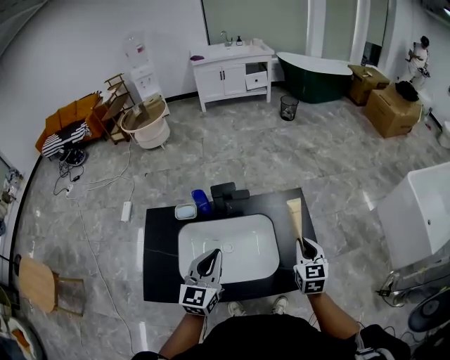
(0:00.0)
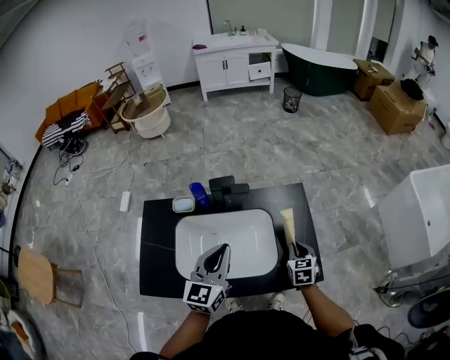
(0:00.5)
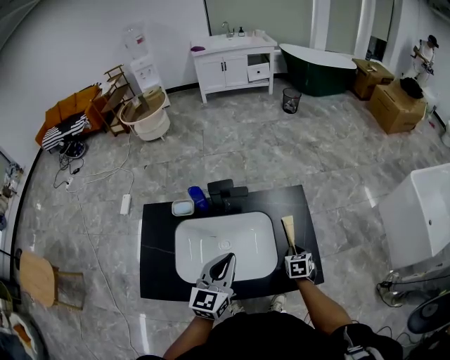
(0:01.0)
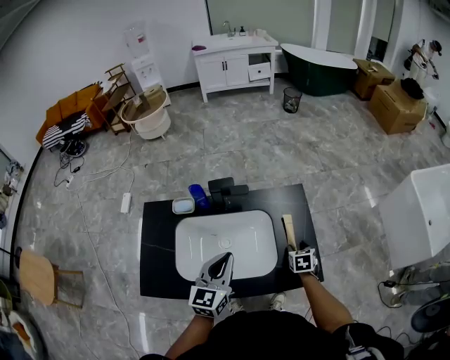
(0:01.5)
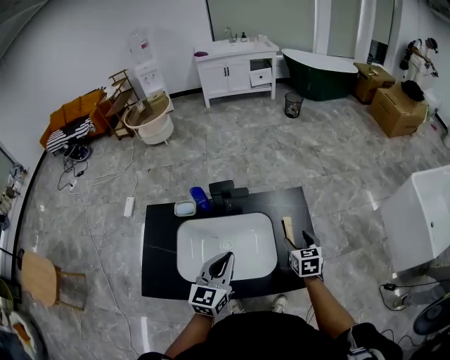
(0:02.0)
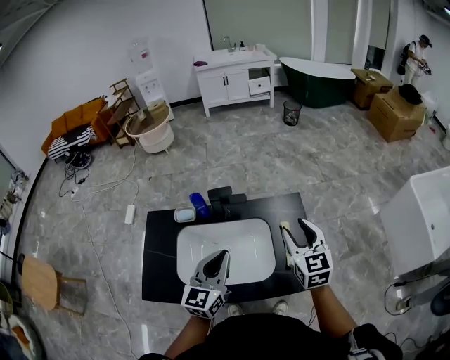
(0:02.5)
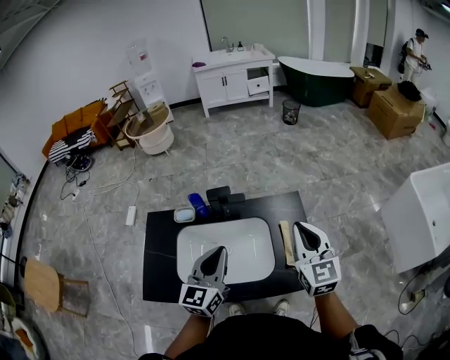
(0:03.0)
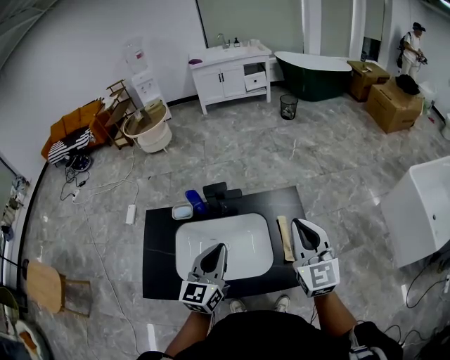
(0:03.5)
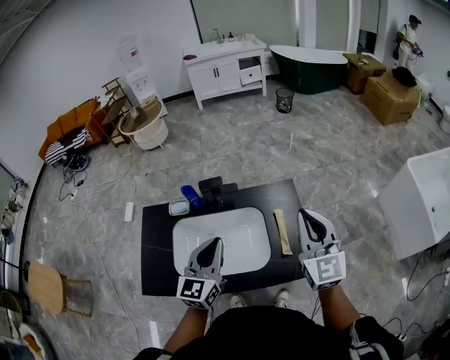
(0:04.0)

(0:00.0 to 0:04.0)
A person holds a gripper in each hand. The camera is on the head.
0:00.0 - 0:02.0: The left gripper moves to the right, some 5 cm. The right gripper is displaced downward by some 5 cm, and opens its fingers.
0:02.0 - 0:04.0: The right gripper travels upward by roughly 25 cm, tips its fingers upward by roughly 40 degrees, and closes up; the left gripper is displaced upward by roughly 5 cm.

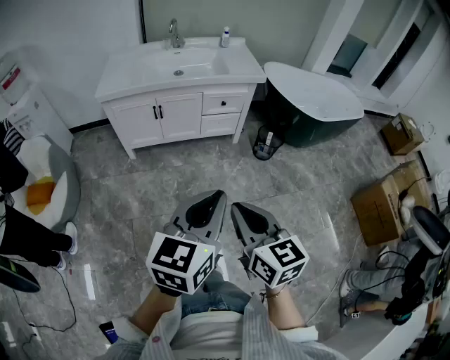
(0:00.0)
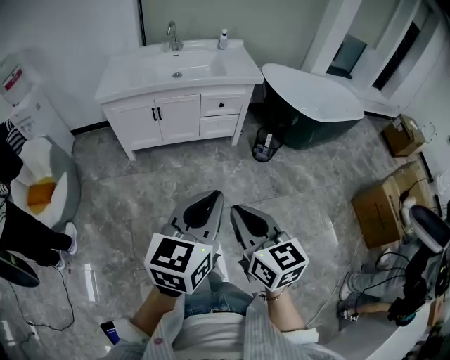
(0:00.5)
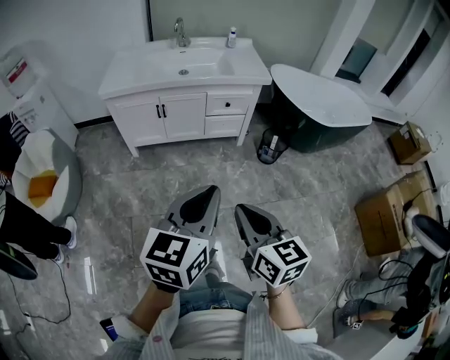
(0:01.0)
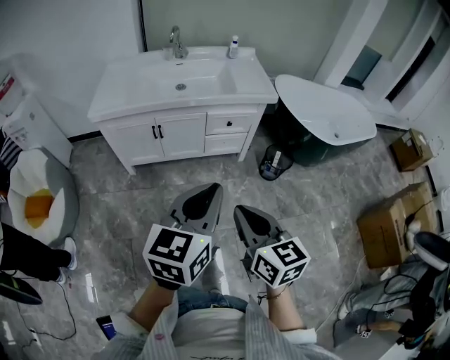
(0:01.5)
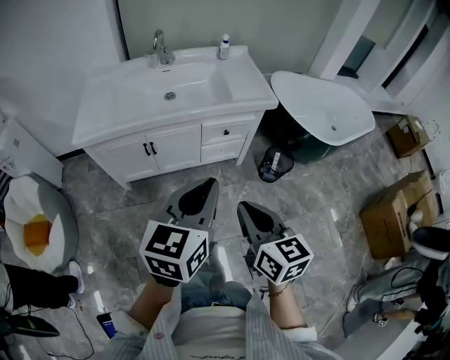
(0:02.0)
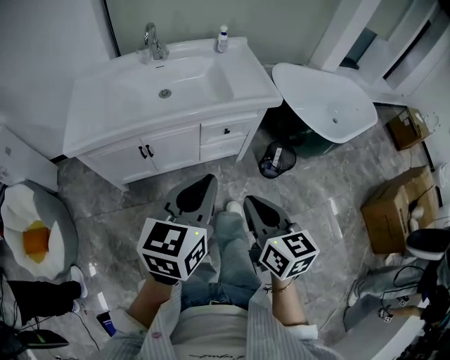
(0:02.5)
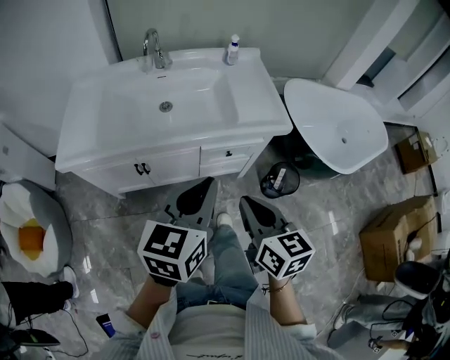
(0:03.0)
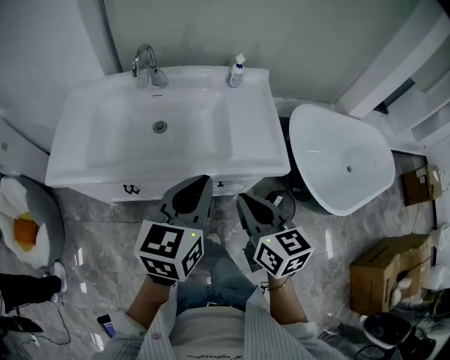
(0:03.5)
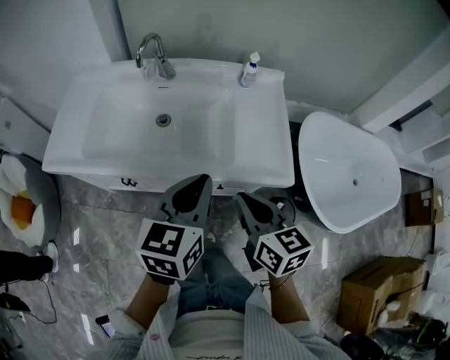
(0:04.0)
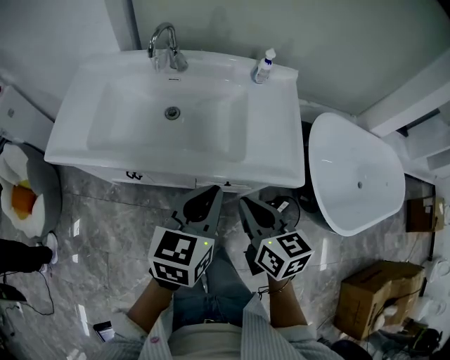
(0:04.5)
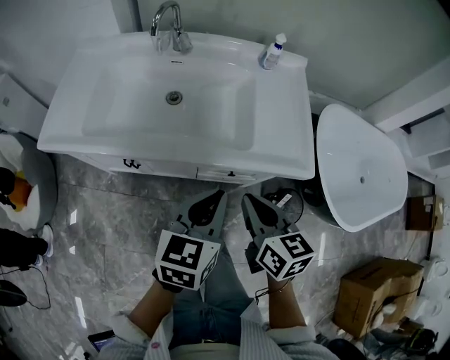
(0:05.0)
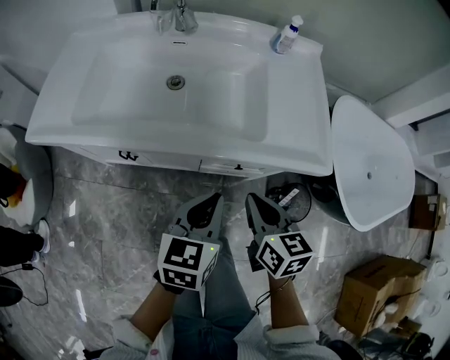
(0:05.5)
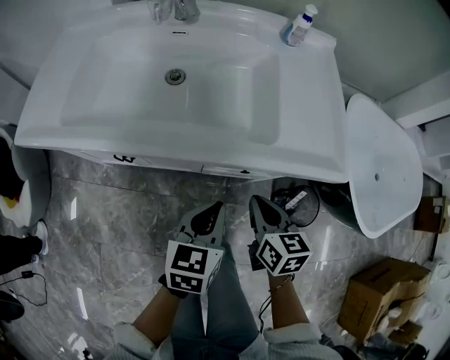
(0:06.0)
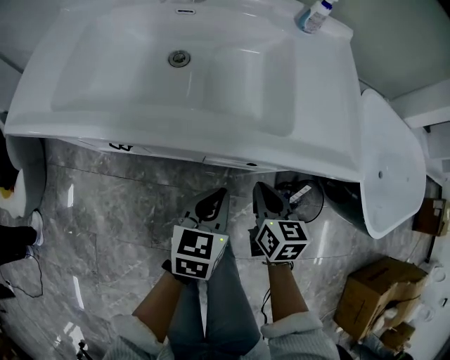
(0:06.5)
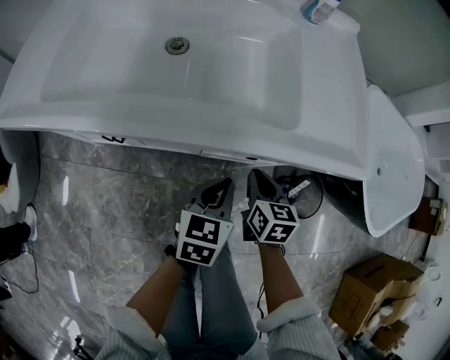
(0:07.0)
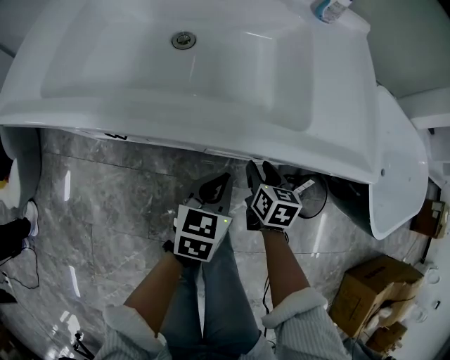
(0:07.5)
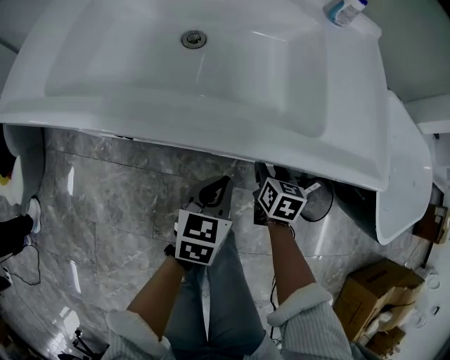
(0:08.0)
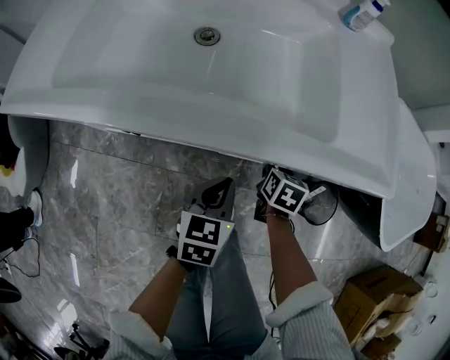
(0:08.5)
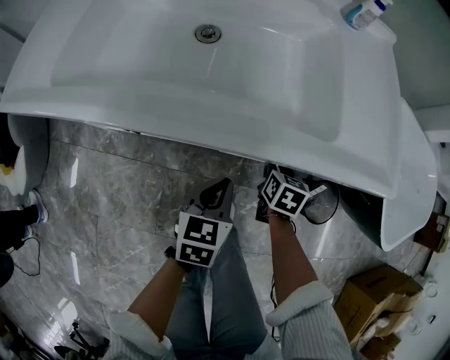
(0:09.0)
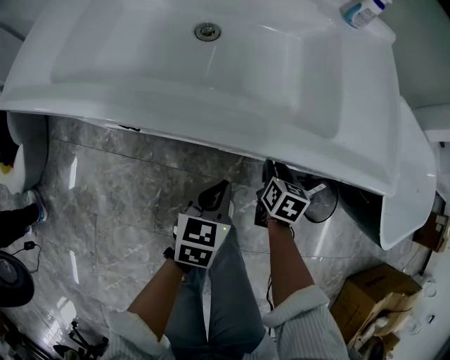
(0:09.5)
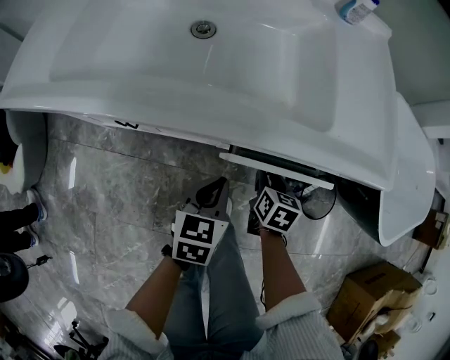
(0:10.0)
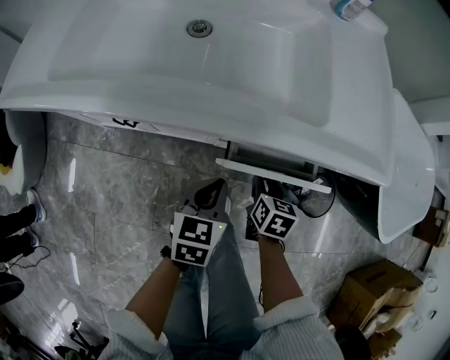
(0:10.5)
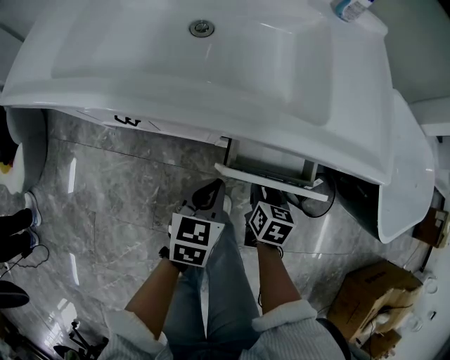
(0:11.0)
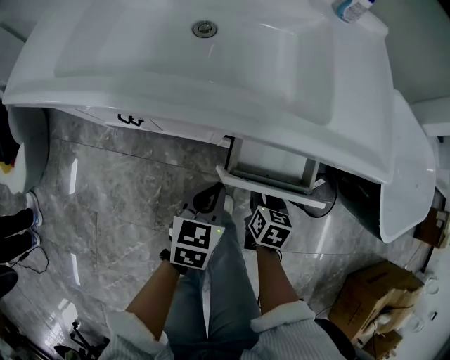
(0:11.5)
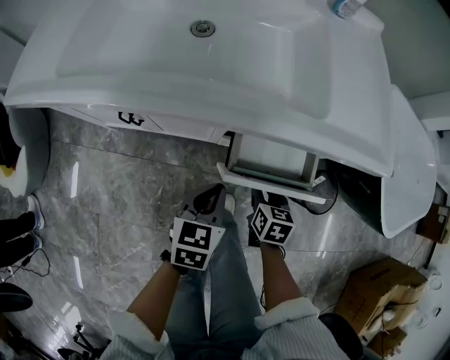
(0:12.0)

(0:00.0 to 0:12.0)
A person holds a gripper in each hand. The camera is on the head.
0:00.0 - 0:02.0: The grippers both shift forward by roughly 30 cm.
0:02.0 - 0:04.0: Both grippers travel together forward, about 35 cm.
0:04.0 - 0:06.0: Both grippers travel together downward, some 25 cm.
0:06.0 - 0:08.0: The right gripper shifts approximately 20 cm downward and forward, and opens up. The left gripper heads downward, covering approximately 10 cm.
0:08.0 - 0:10.0: The right gripper moves roughly 5 cm.
0:10.0 - 0:12.0: The right gripper is displaced backward by about 5 cm.

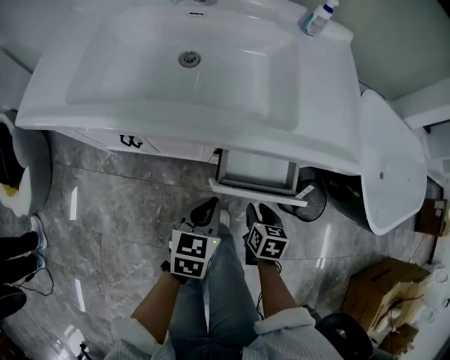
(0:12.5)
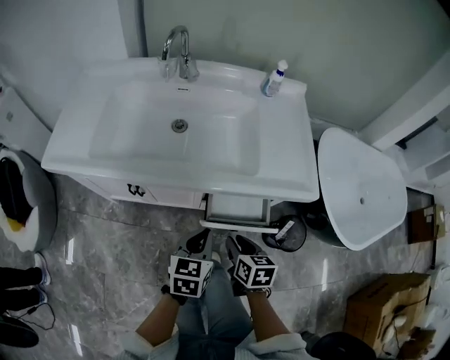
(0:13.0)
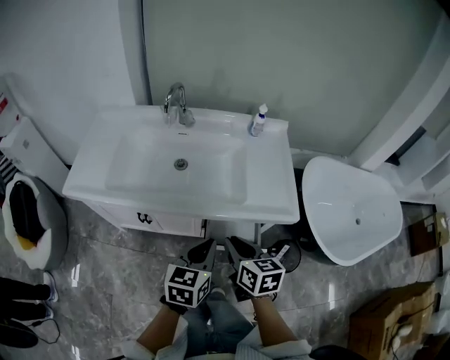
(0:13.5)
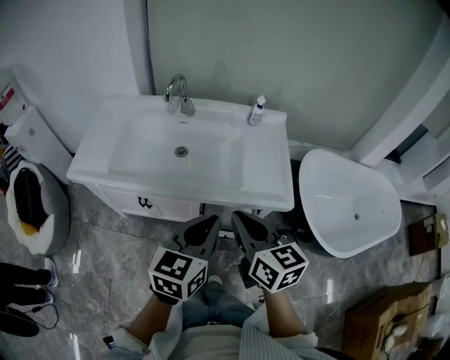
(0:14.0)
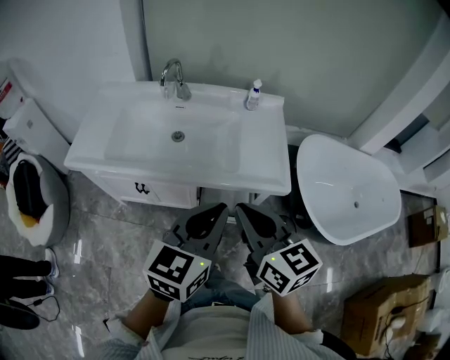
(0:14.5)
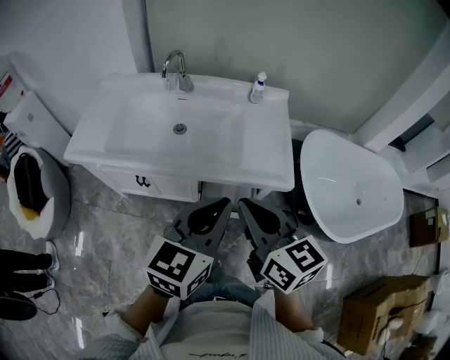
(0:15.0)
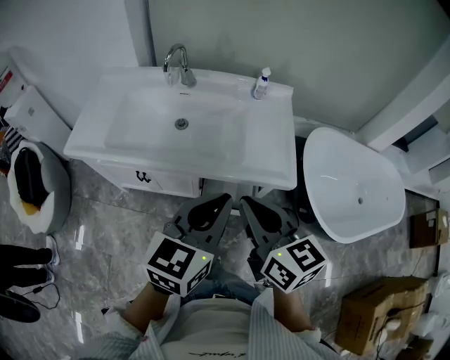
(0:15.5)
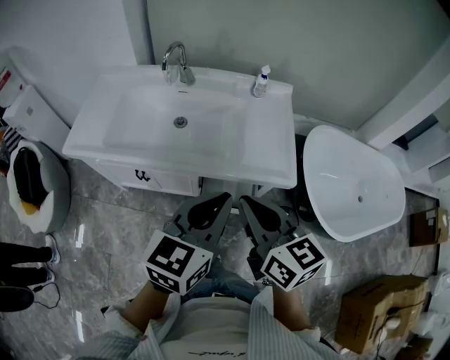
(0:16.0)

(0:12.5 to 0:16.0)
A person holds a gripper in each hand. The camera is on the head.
0:12.5 - 0:14.5: The two grippers go roughly 40 cm upward. The right gripper tilts its fingers approximately 40 degrees upward, and closes, while the left gripper swivels roughly 30 degrees.
0:14.5 - 0:16.0: The grippers make only small movements.

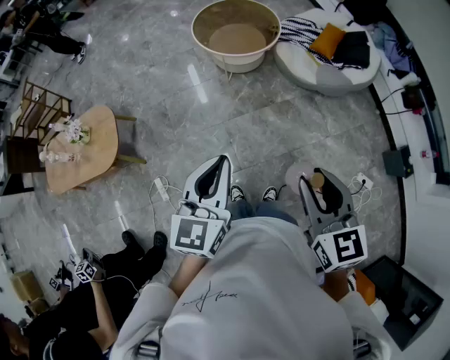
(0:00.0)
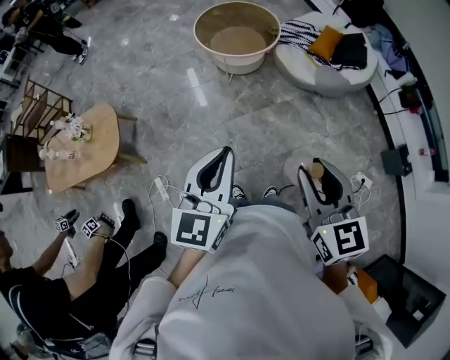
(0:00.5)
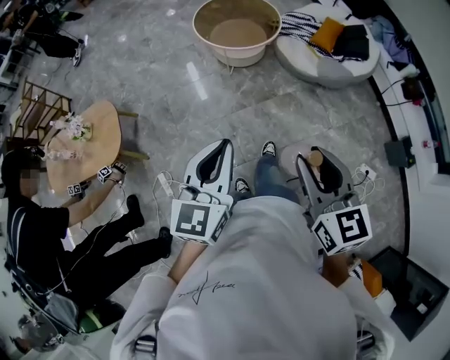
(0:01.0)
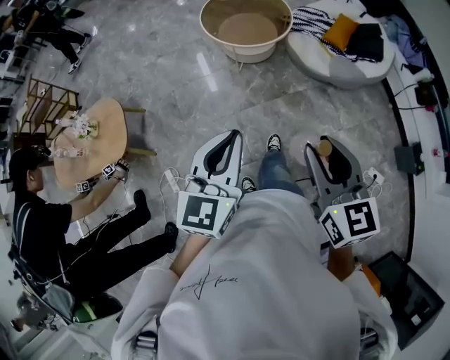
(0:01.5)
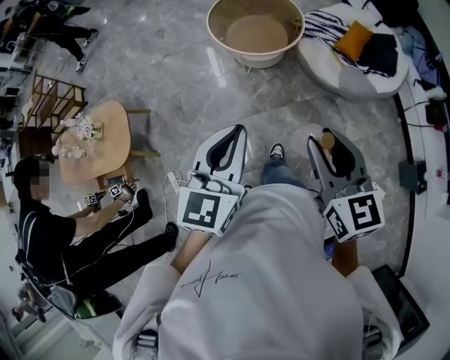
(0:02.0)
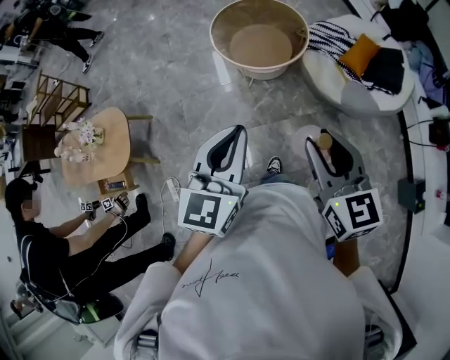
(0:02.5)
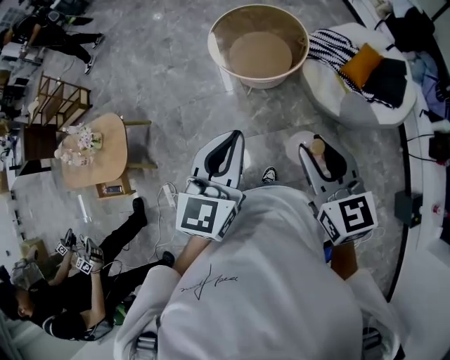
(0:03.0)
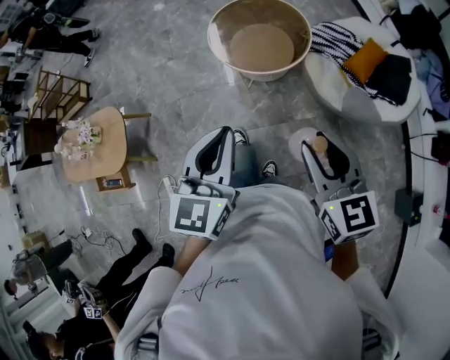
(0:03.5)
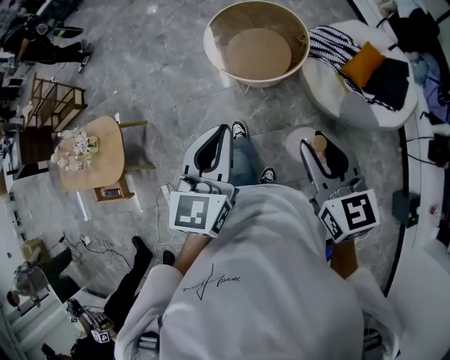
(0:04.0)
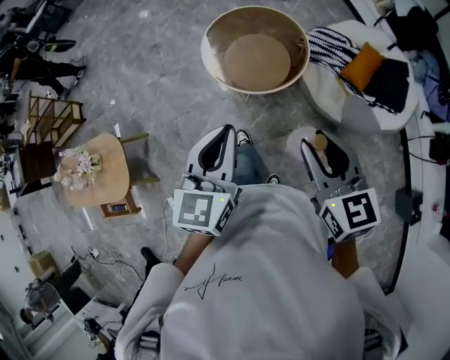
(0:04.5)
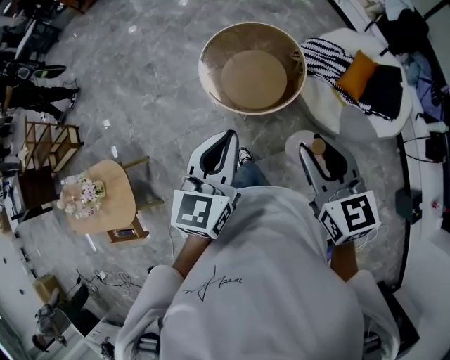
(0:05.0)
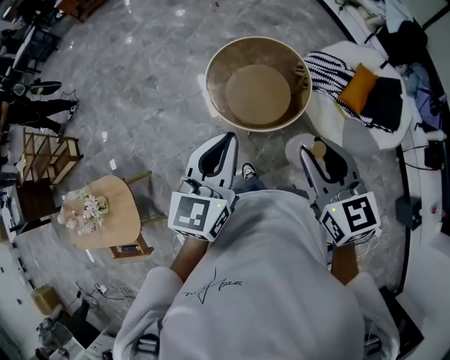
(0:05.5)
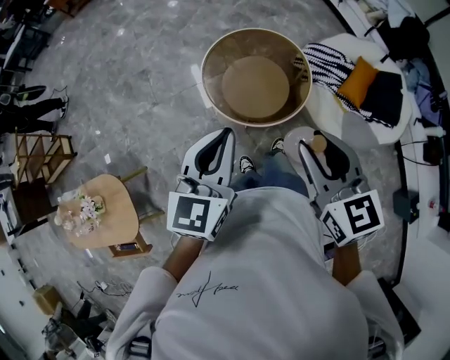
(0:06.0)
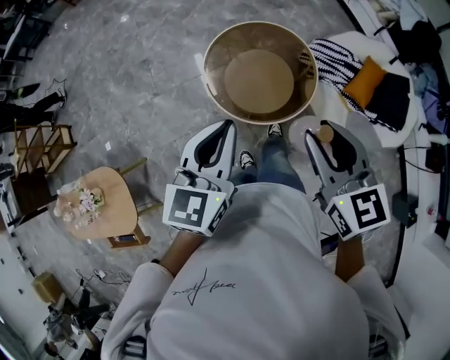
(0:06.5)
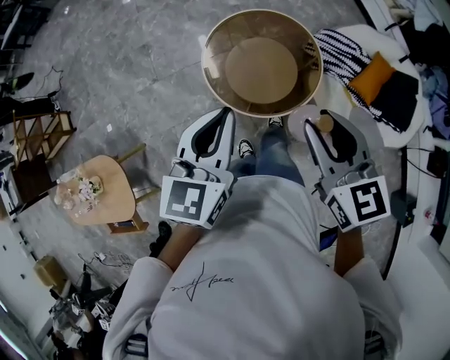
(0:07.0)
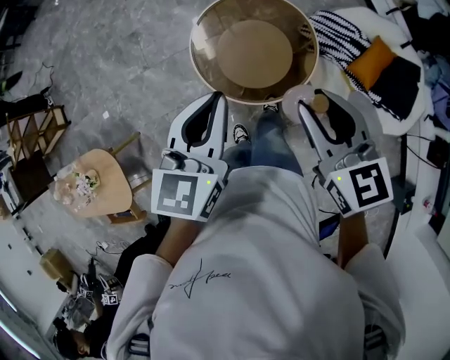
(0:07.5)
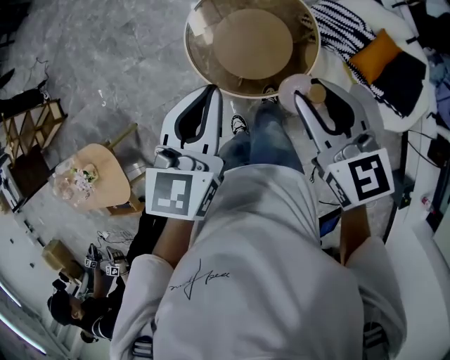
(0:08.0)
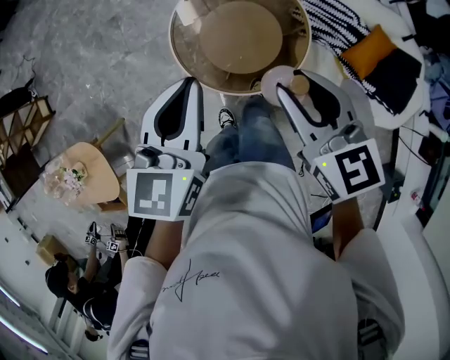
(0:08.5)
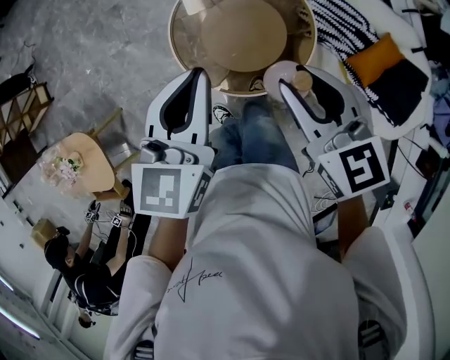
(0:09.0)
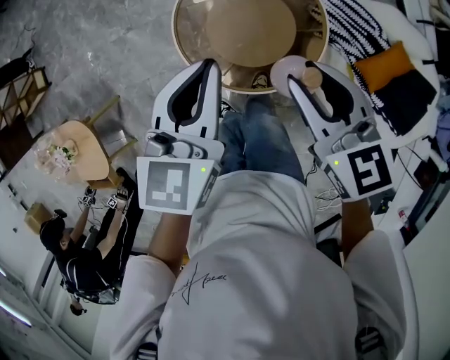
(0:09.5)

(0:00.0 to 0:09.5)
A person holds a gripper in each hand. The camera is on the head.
0:00.0 - 0:02.0: Both grippers travel together forward, roughly 15 cm.
0:02.0 - 0:04.0: The grippers both shift forward by roughly 20 cm.
0:04.0 - 0:05.5: The right gripper shifts about 20 cm forward and to the left, while the left gripper heads forward, covering approximately 20 cm.
0:05.5 - 0:07.5: The two grippers go approximately 15 cm forward.
0:07.5 - 0:09.5: The left gripper shifts approximately 15 cm forward, downward and to the right, while the right gripper travels forward and downward by roughly 15 cm.
